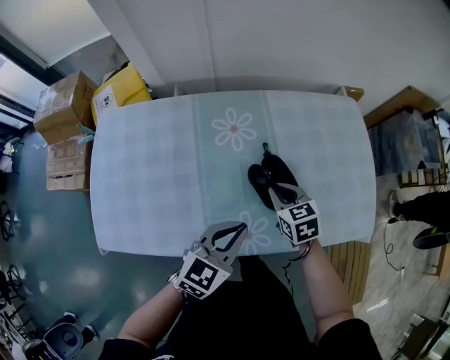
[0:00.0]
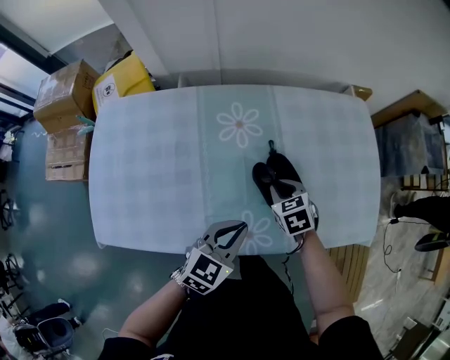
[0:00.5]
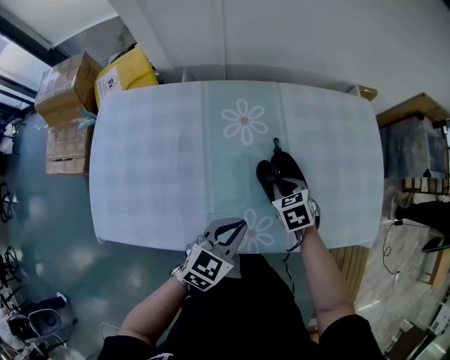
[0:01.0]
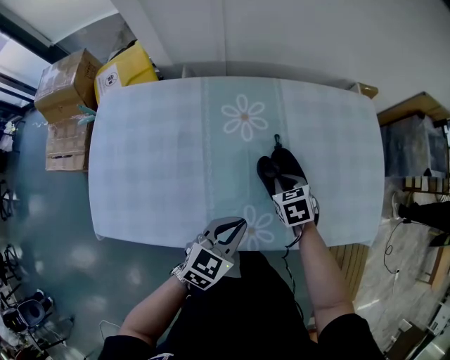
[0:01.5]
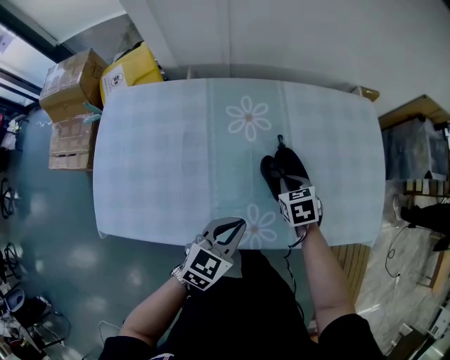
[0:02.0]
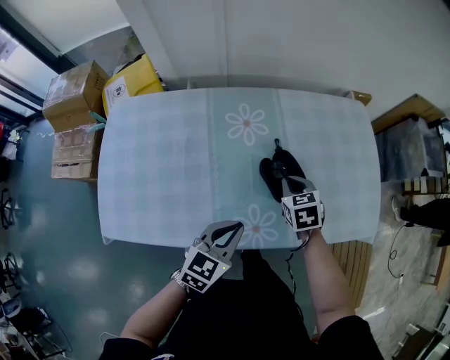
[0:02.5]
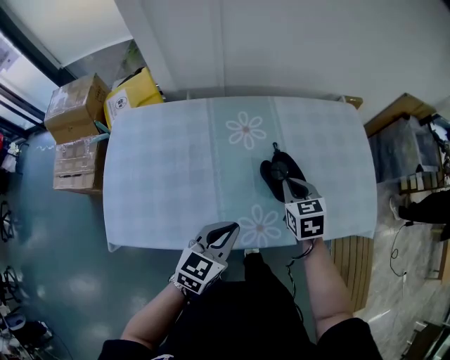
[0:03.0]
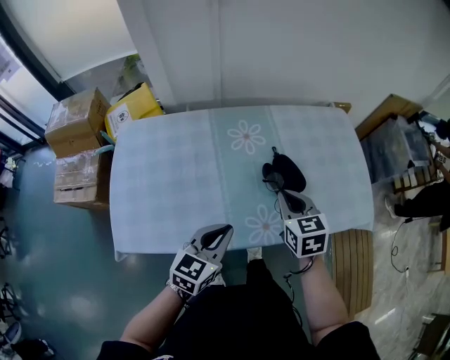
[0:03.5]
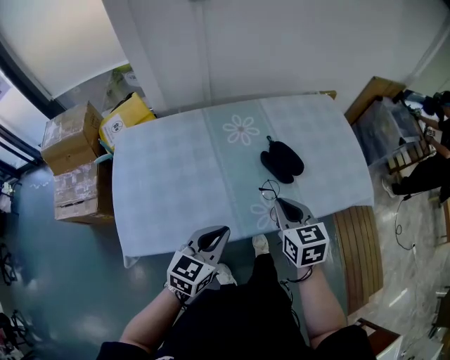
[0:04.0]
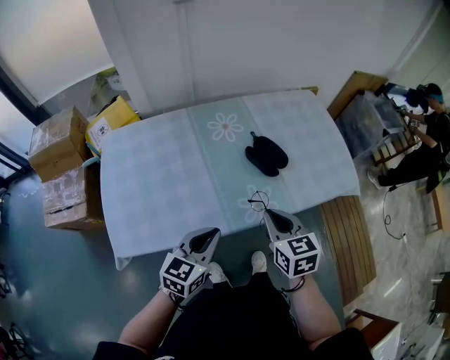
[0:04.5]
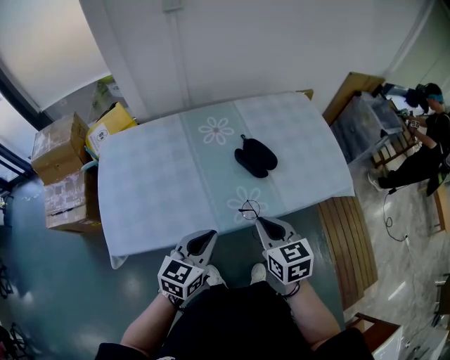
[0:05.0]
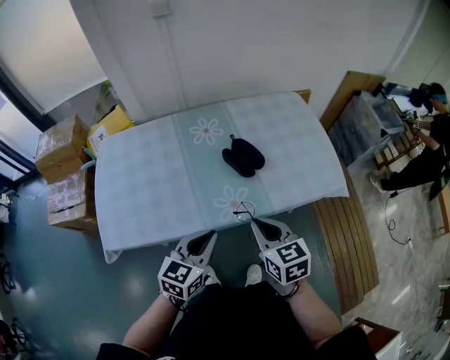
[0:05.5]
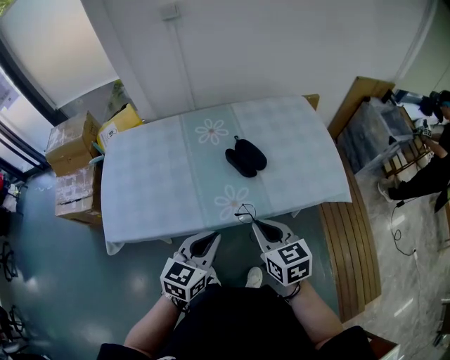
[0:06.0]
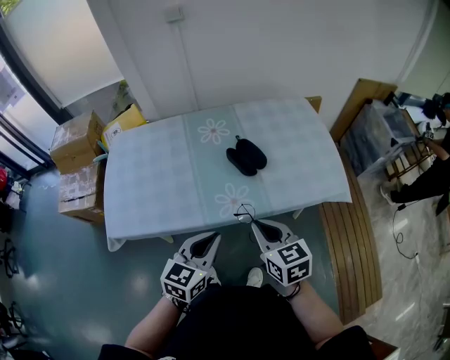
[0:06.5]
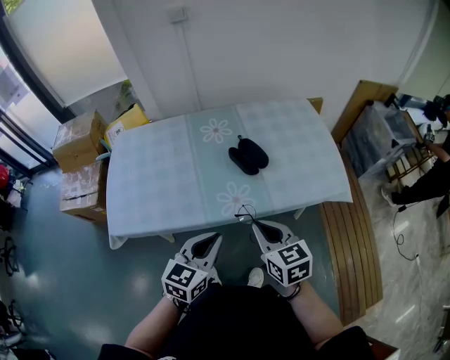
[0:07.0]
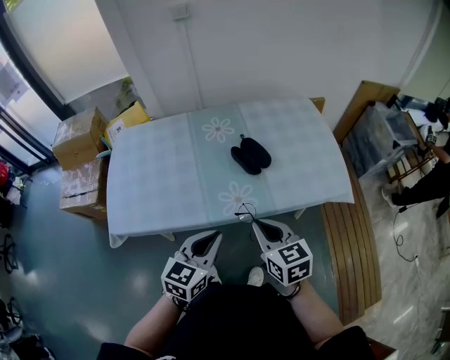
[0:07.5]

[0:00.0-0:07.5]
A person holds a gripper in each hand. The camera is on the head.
0:00.0 to 0:02.0: The grippers both shift downward by some 5 cm.
0:02.0 to 0:04.0: The right gripper shifts approximately 25 cm backward and upward, and rotates about 30 degrees. Meanwhile the left gripper goes approximately 20 cm backward, to the left and upward.
0:04.0 to 0:05.5: The left gripper goes roughly 10 cm to the right, while the right gripper goes about 15 cm backward and to the right.
0:05.5 to 0:07.5: The grippers make only small movements.

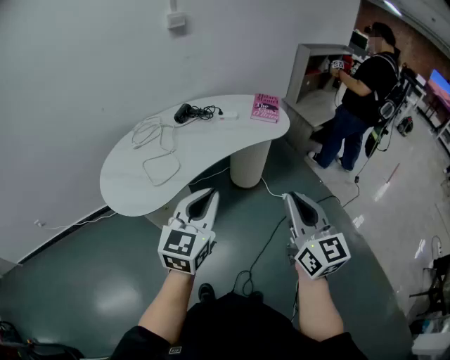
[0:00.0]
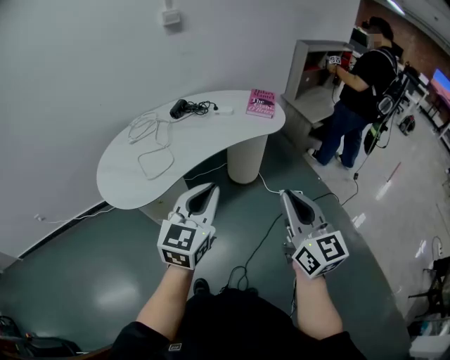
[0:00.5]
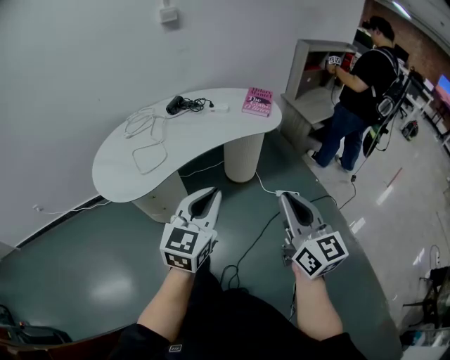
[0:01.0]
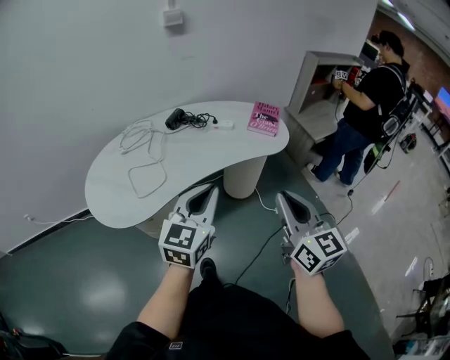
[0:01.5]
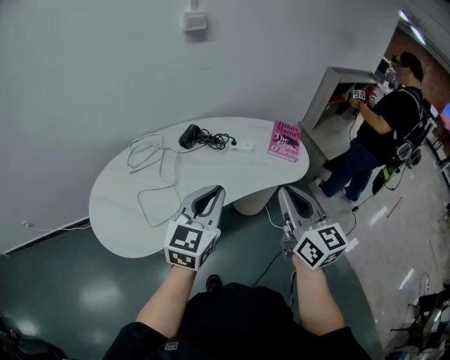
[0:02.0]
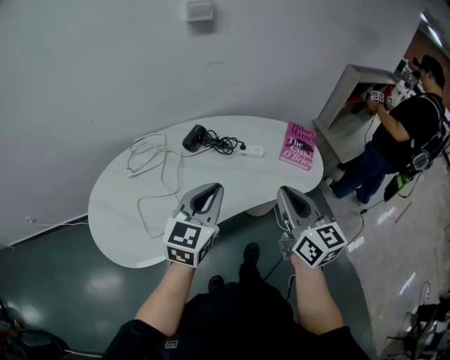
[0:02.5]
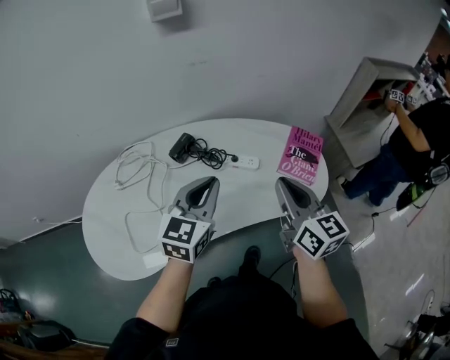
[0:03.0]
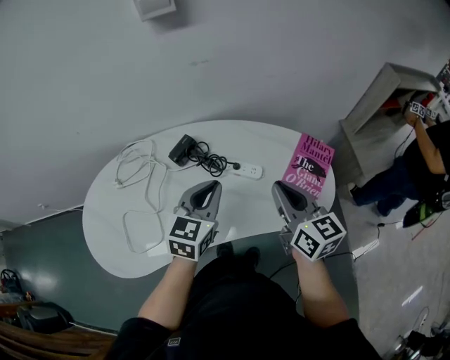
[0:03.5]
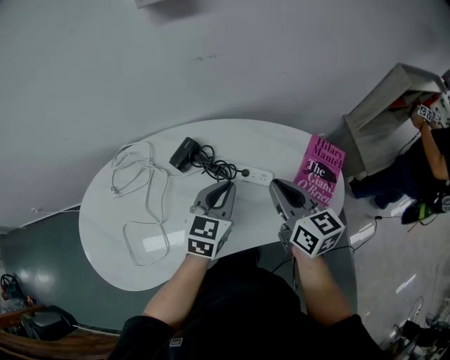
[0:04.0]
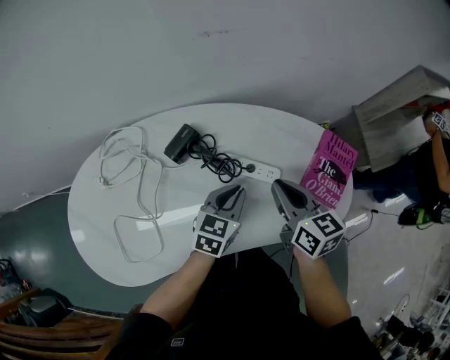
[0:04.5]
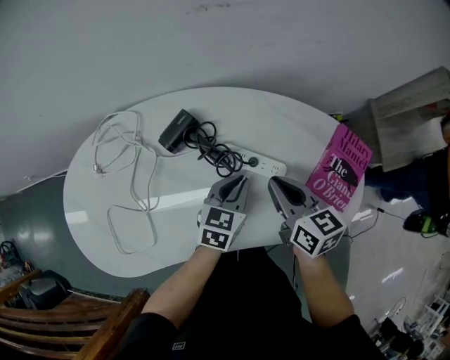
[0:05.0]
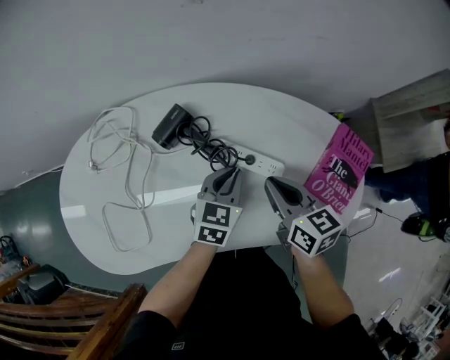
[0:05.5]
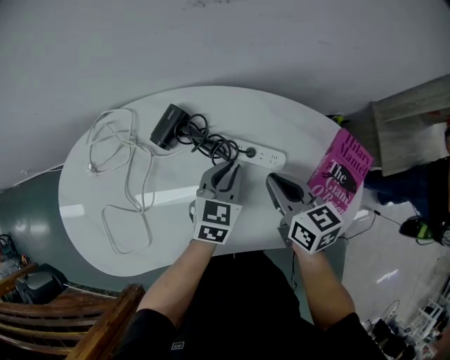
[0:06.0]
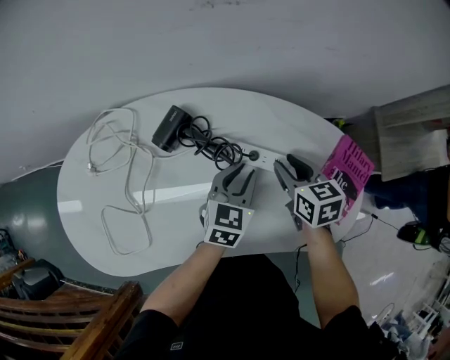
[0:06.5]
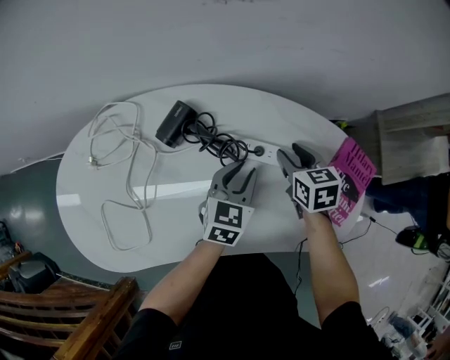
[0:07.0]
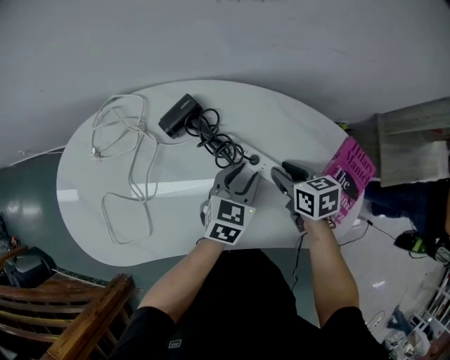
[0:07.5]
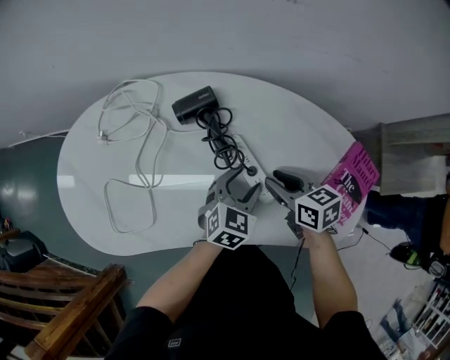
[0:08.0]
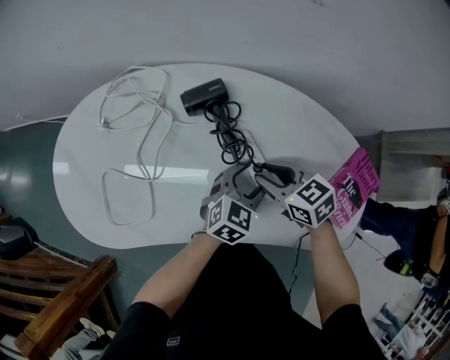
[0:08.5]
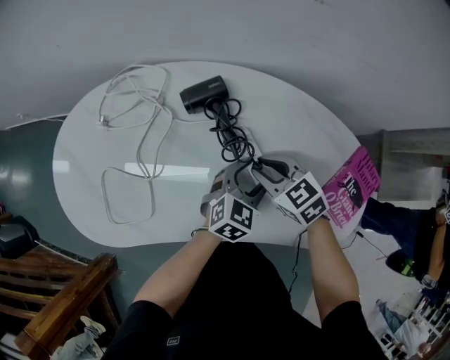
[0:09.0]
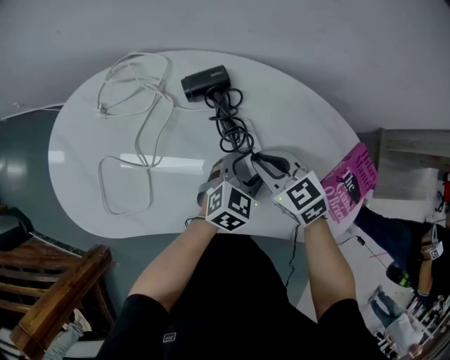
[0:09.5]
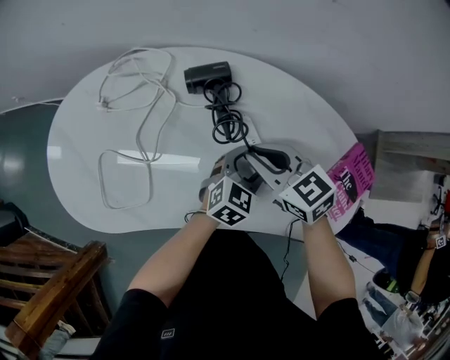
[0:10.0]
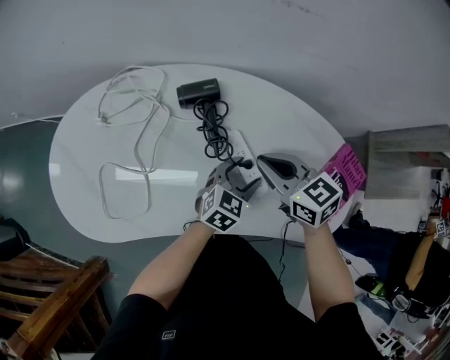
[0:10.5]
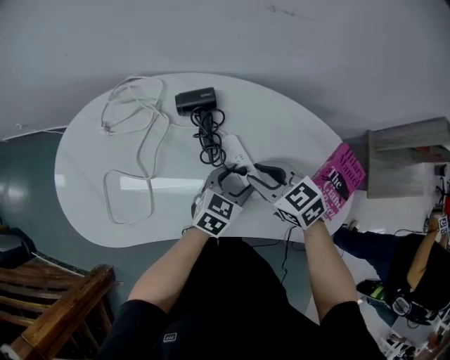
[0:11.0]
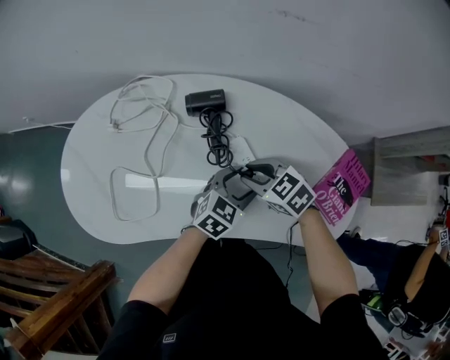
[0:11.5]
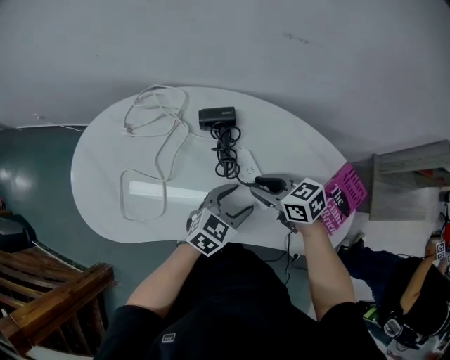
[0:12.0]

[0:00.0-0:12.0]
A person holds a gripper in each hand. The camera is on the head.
0:00.0 to 0:02.0: The grippers both shift forward by about 25 cm.
0:02.0 to 0:04.0: Both grippers move forward and downward, some 35 cm. The right gripper swivels roughly 30 degrees; the left gripper turns by about 20 degrees.
0:04.0 to 0:06.0: The right gripper travels downward by roughly 15 cm. Meanwhile the left gripper moves downward and forward, about 15 cm.
0:06.0 to 0:08.0: The right gripper moves downward, roughly 5 cm, moves some 10 cm forward and comes back, turns by some 20 degrees, and opens, while the left gripper heads backward, covering roughly 5 cm, and opens up.
0:08.0 to 0:10.0: The right gripper goes about 10 cm to the left and upward, and swivels about 30 degrees.
0:10.0 to 0:12.0: The left gripper travels backward and upward by approximately 10 cm.

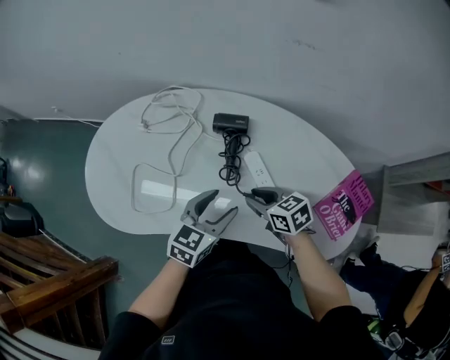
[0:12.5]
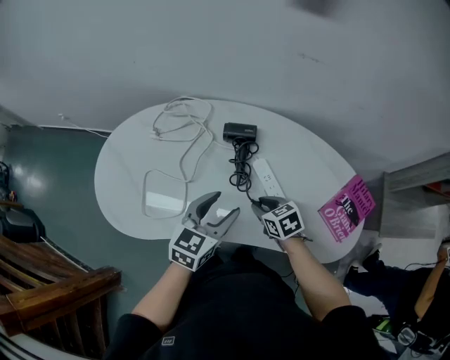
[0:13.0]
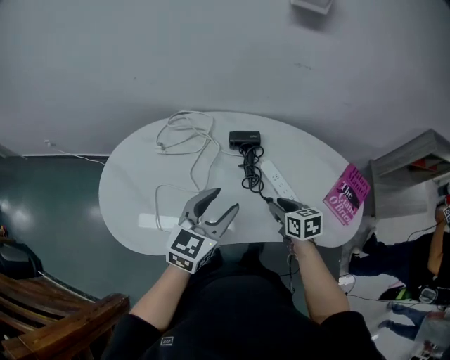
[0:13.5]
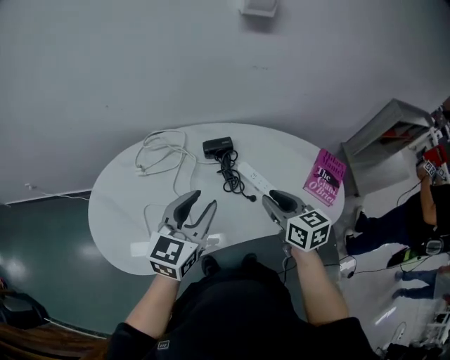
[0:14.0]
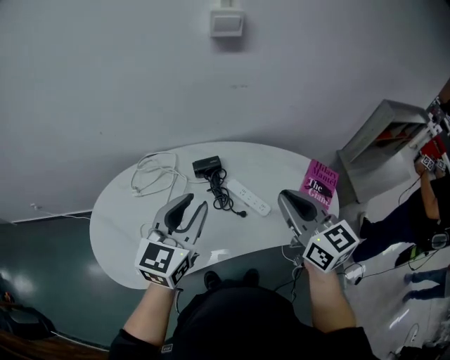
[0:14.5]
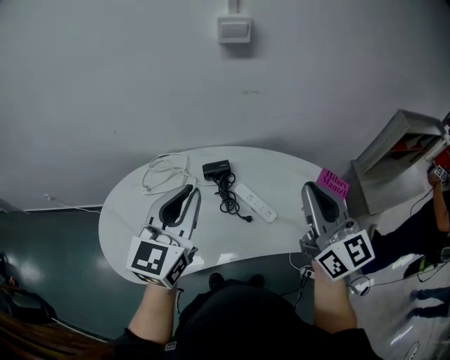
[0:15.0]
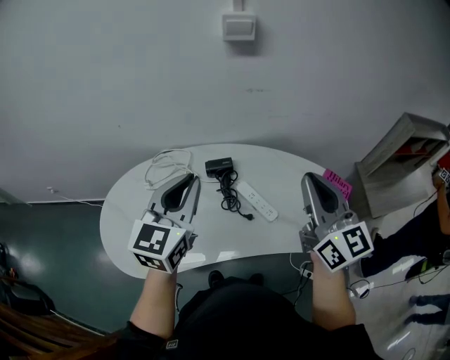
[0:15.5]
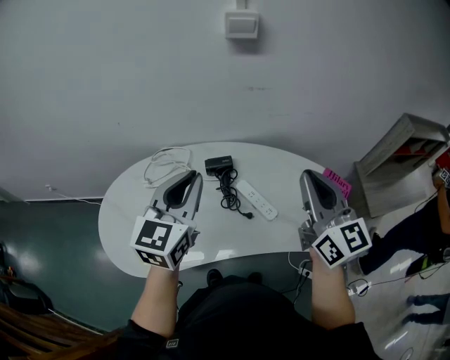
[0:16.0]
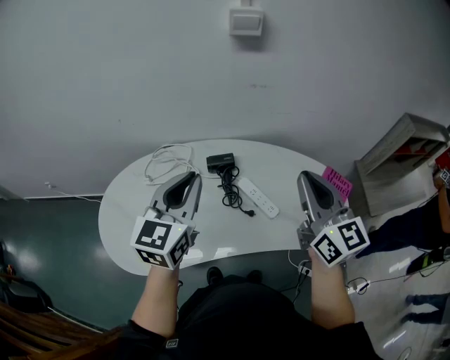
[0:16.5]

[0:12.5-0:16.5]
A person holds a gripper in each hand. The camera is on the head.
0:12.5 to 0:14.5: The two grippers go roughly 25 cm upward. The left gripper turns by some 20 degrees, and closes up; the right gripper rotates some 50 degrees.
0:14.5 to 0:16.5: The left gripper changes place by some 5 cm. The right gripper moves some 5 cm.

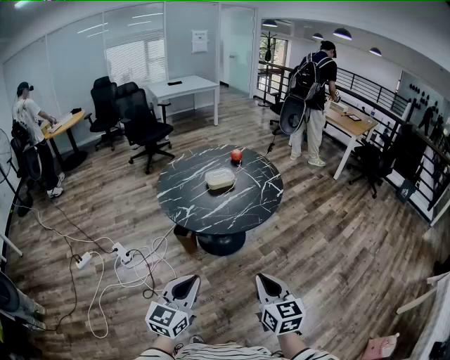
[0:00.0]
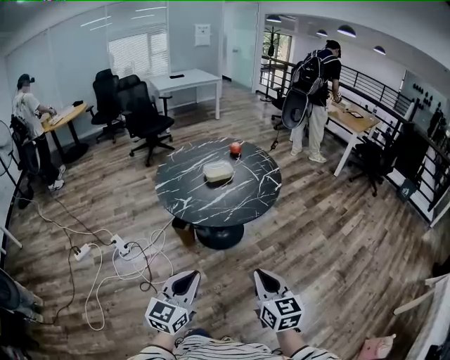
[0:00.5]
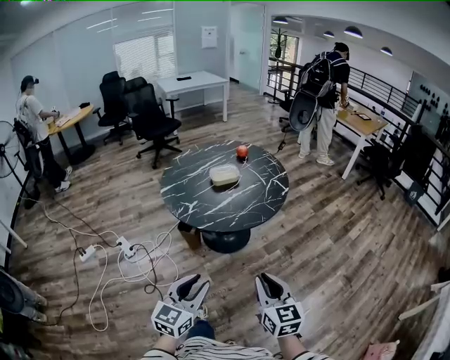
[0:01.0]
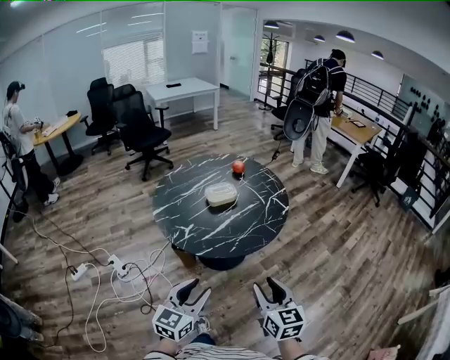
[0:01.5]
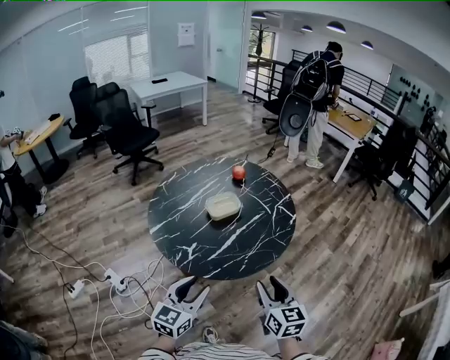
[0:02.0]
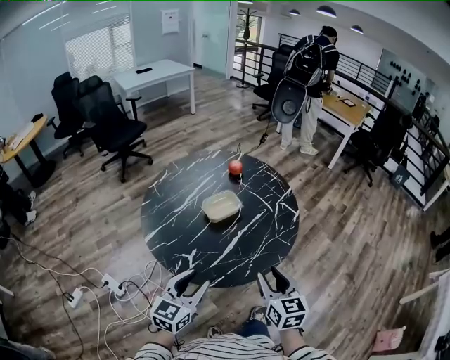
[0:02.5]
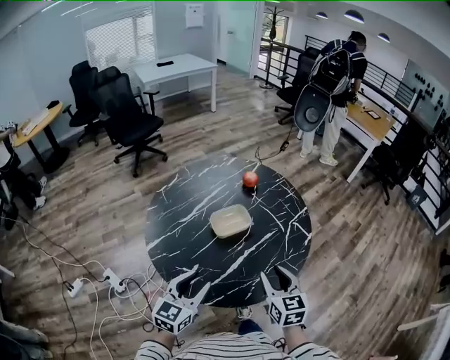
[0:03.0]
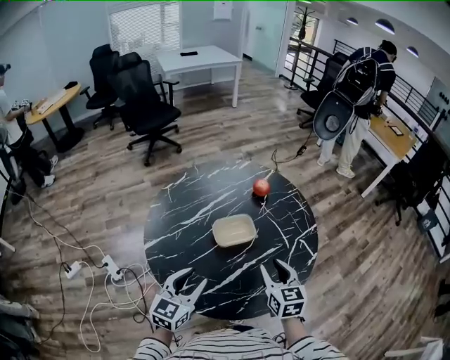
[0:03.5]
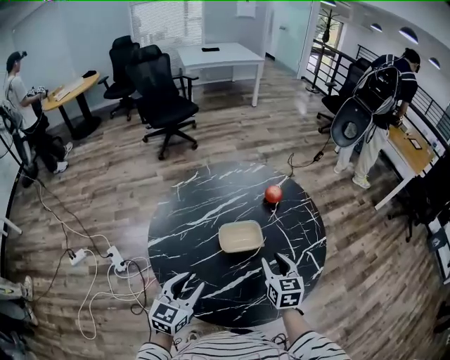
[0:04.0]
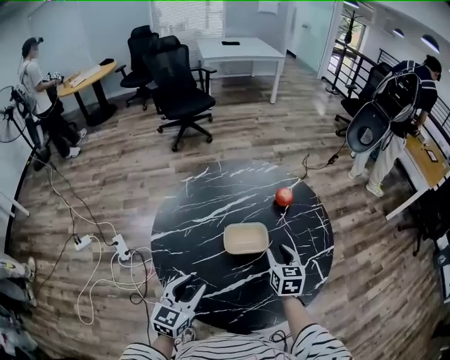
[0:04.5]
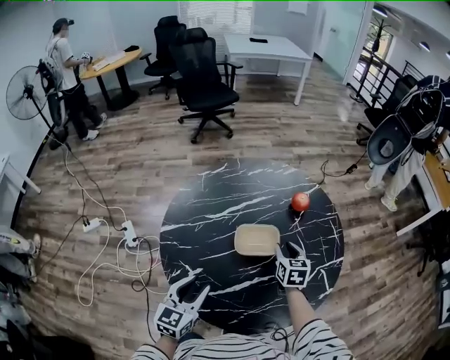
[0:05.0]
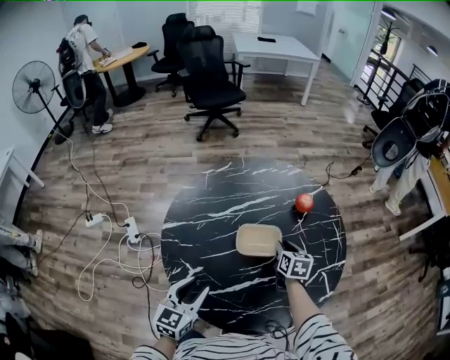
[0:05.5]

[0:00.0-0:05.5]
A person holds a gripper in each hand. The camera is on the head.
0:00.0 to 0:02.0: Both grippers travel together forward, about 25 cm. The right gripper opens up, while the left gripper opens.
0:02.0 to 0:03.5: Both grippers travel together forward, some 25 cm.
0:03.5 to 0:05.5: The right gripper travels forward and downward by approximately 25 cm, and turns by some 20 degrees. The left gripper swivels some 20 degrees.
